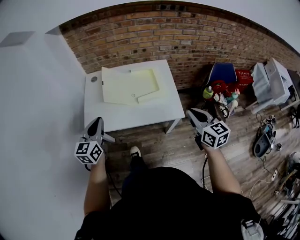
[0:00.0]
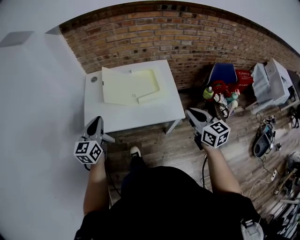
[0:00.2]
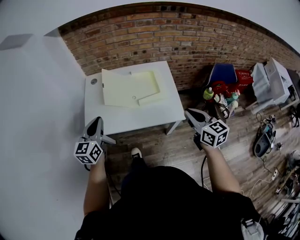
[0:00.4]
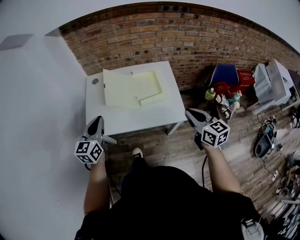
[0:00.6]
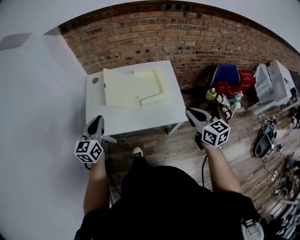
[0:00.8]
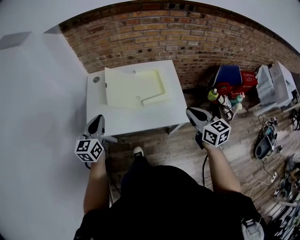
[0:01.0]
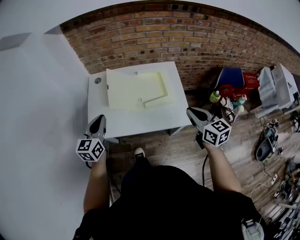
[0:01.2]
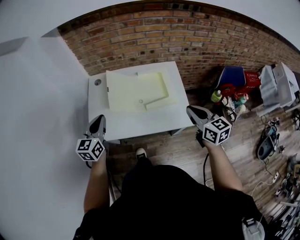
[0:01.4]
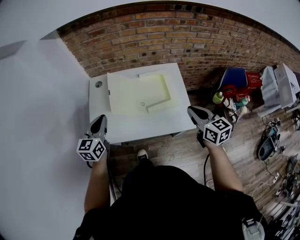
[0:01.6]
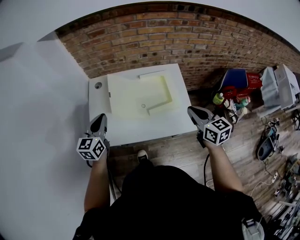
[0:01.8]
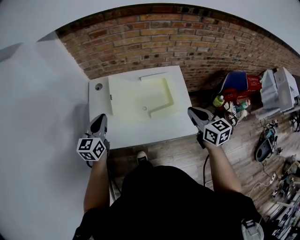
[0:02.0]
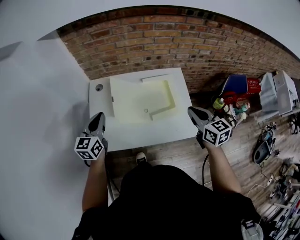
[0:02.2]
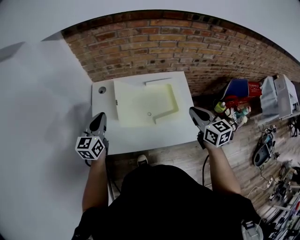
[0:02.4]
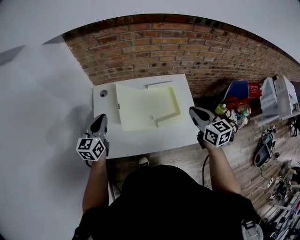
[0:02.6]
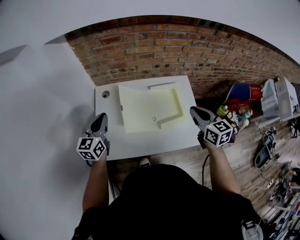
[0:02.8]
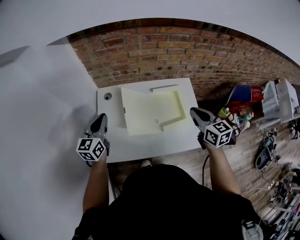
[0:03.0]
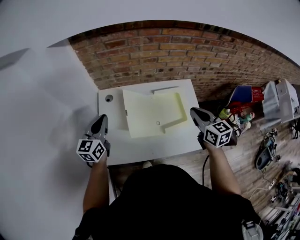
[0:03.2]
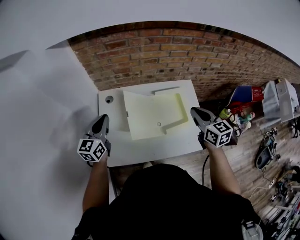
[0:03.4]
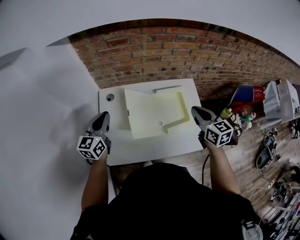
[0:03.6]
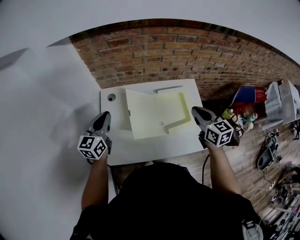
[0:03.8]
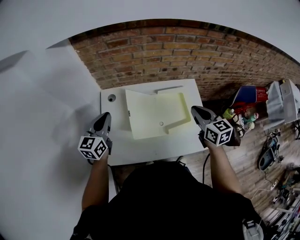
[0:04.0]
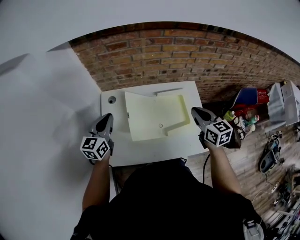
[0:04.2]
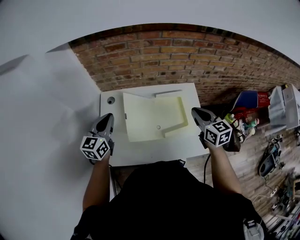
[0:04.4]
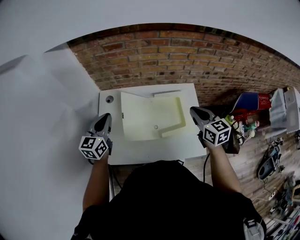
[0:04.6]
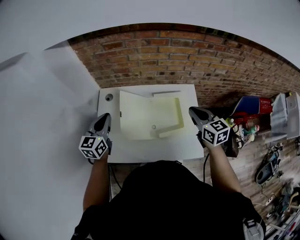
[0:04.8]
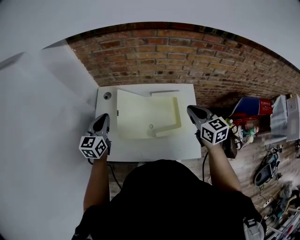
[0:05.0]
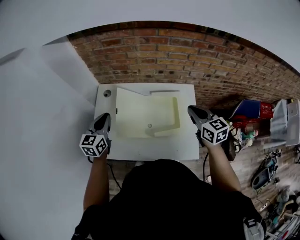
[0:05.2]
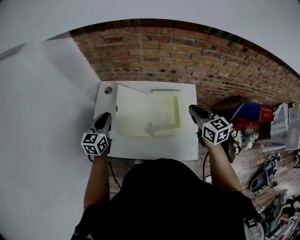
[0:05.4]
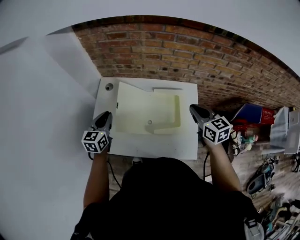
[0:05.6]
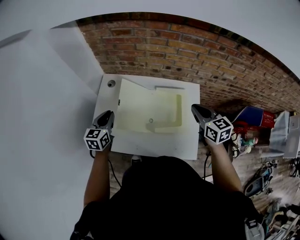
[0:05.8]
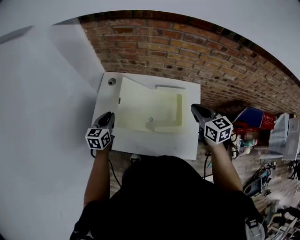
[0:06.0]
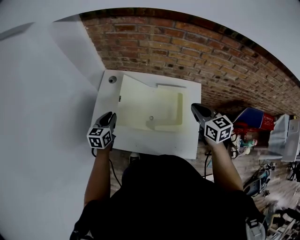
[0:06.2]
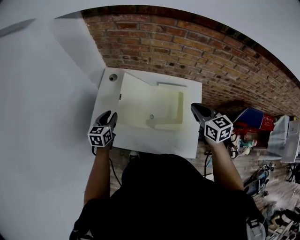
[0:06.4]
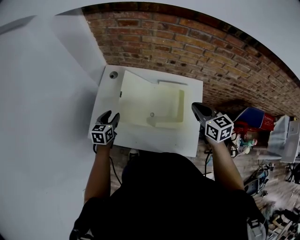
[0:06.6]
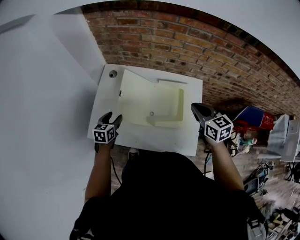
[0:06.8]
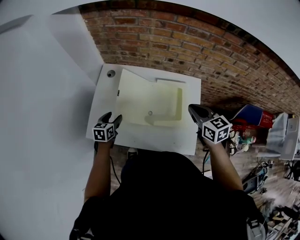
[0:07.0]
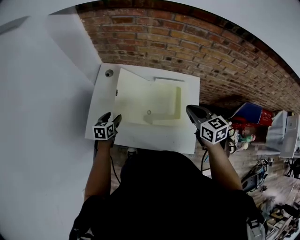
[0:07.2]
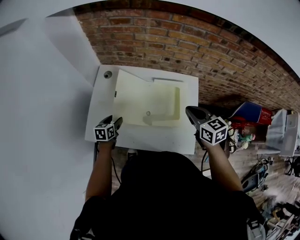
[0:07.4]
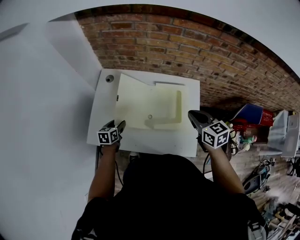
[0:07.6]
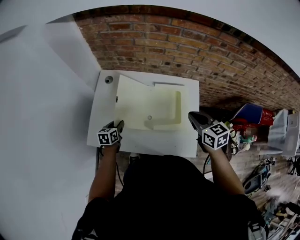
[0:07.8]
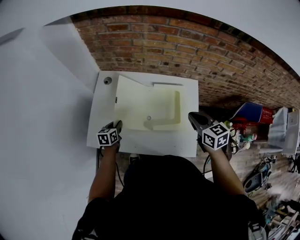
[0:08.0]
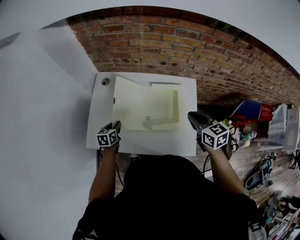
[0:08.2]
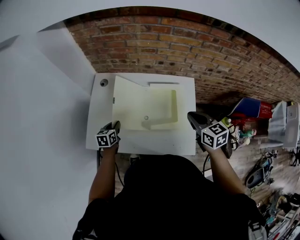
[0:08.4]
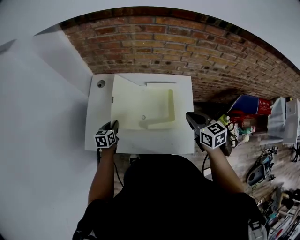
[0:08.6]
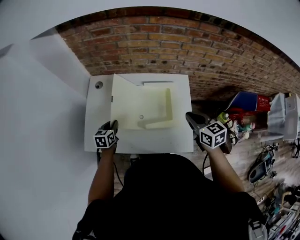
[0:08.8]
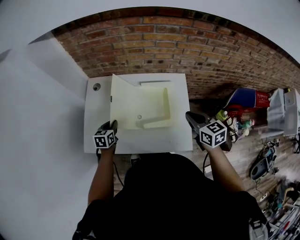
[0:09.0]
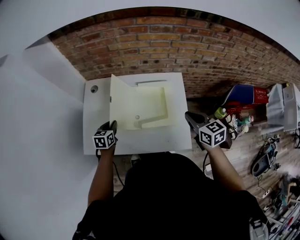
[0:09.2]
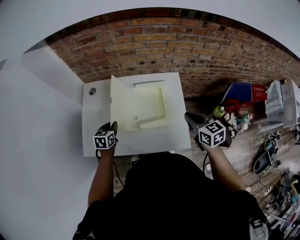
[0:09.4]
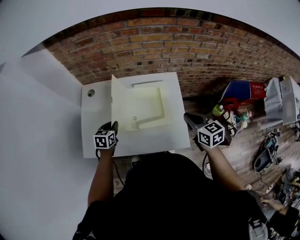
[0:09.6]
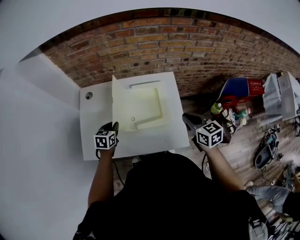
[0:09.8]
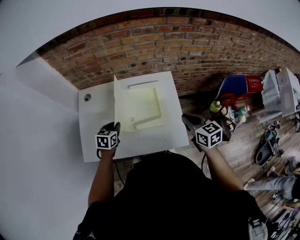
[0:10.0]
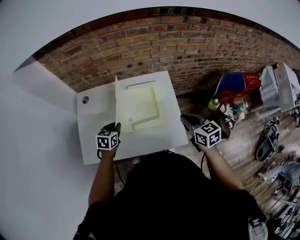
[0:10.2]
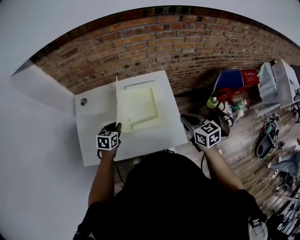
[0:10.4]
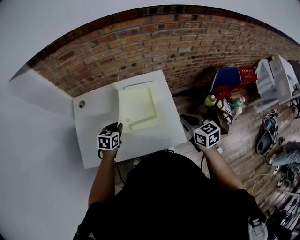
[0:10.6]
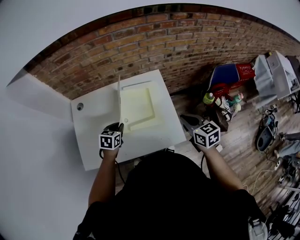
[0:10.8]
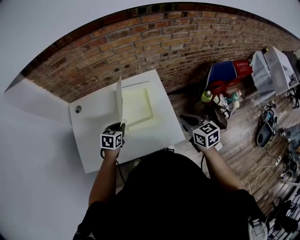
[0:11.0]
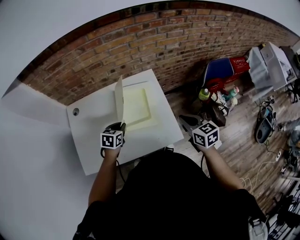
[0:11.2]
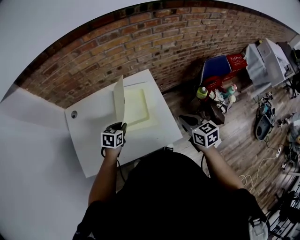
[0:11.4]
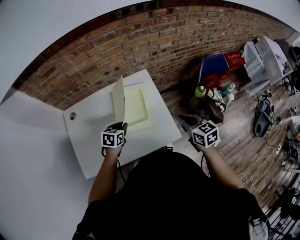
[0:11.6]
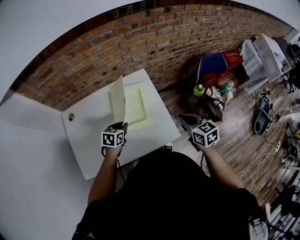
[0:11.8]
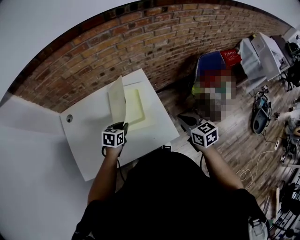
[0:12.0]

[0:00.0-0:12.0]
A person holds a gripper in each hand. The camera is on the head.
0:00.0 to 0:01.6: Both grippers travel together forward, roughly 15 cm.
0:01.6 to 0:03.0: Both grippers move forward and to the left, roughly 15 cm.
0:03.0 to 0:04.4: The right gripper changes place by roughly 5 cm.
0:04.4 to 0:06.0: The right gripper changes place by about 5 cm; the left gripper shifts about 15 cm downward and backward, and swivels approximately 20 degrees.
0:06.0 to 0:07.6: The left gripper shifts some 15 cm downward, and opens up.
0:07.6 to 0:09.0: The right gripper is displaced to the right by roughly 5 cm. The left gripper moves approximately 5 cm, and closes its fingers.
0:09.0 to 0:10.4: The left gripper is displaced to the right by approximately 10 cm, while the right gripper goes roughly 5 cm backward.
0:10.4 to 0:12.0: The right gripper is displaced to the right by roughly 5 cm, while the left gripper moves to the right, approximately 10 cm.

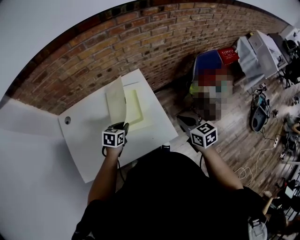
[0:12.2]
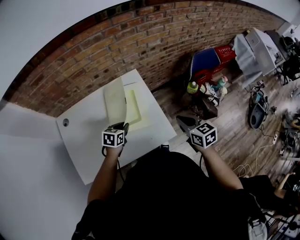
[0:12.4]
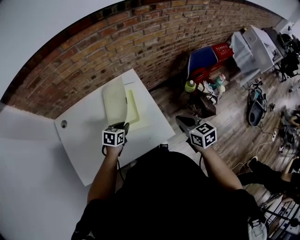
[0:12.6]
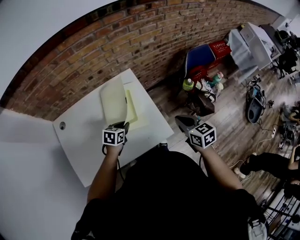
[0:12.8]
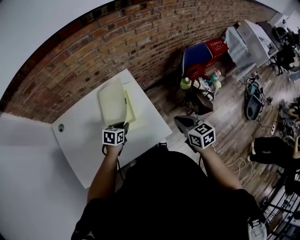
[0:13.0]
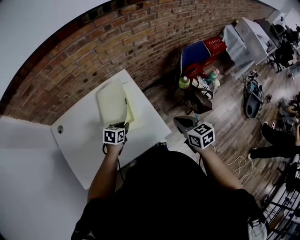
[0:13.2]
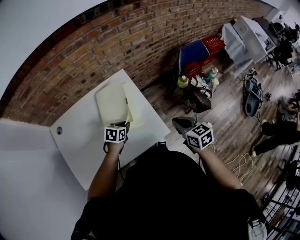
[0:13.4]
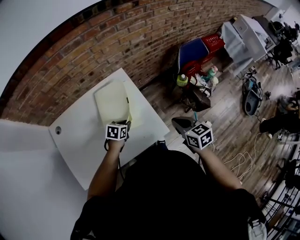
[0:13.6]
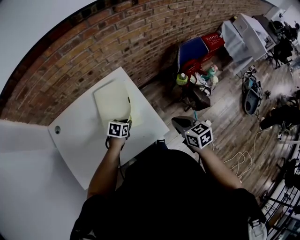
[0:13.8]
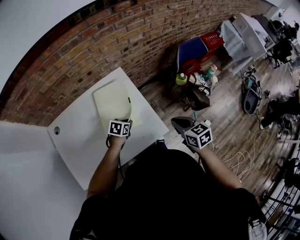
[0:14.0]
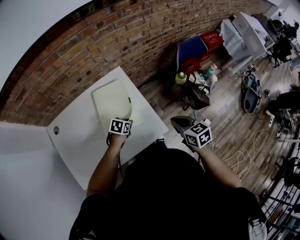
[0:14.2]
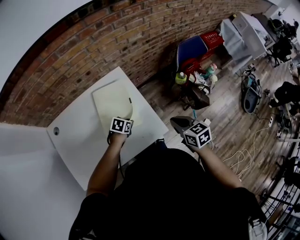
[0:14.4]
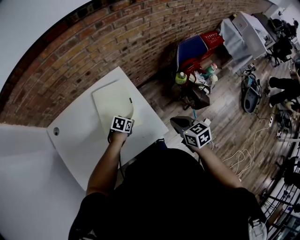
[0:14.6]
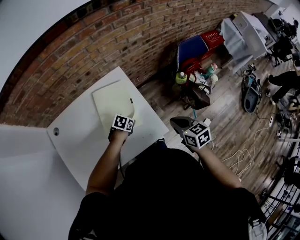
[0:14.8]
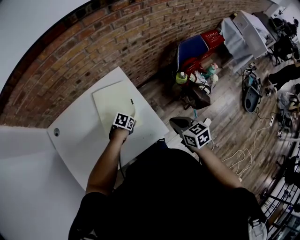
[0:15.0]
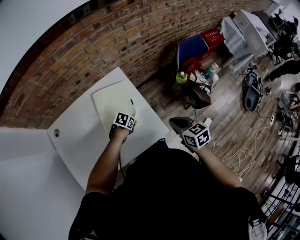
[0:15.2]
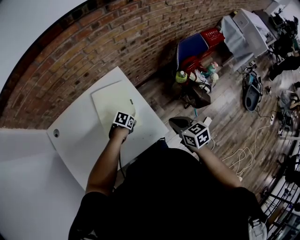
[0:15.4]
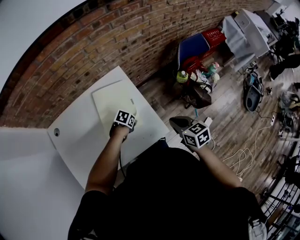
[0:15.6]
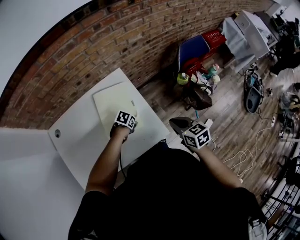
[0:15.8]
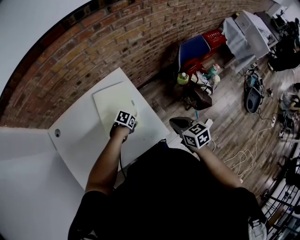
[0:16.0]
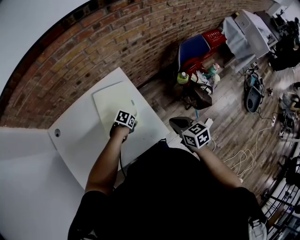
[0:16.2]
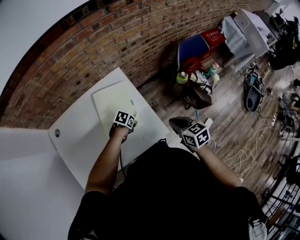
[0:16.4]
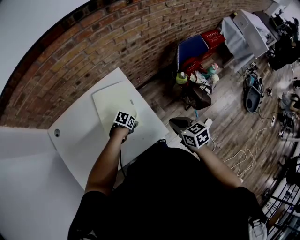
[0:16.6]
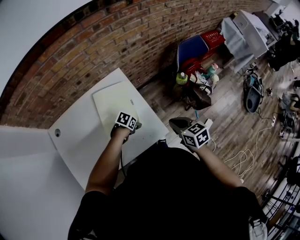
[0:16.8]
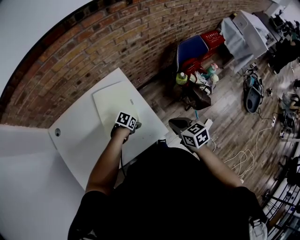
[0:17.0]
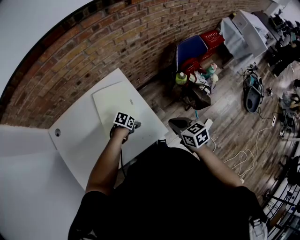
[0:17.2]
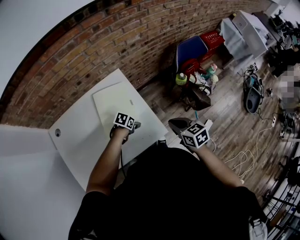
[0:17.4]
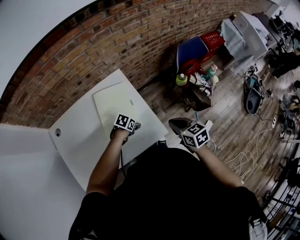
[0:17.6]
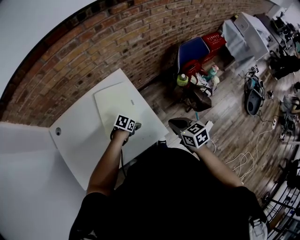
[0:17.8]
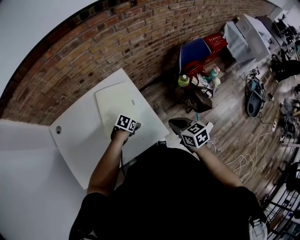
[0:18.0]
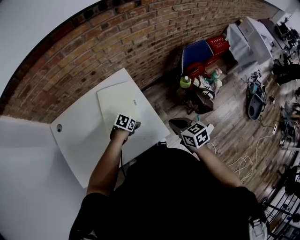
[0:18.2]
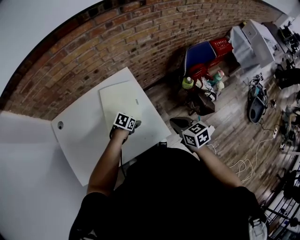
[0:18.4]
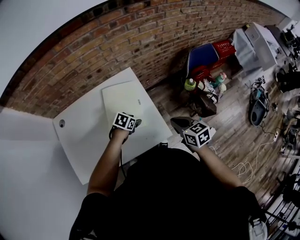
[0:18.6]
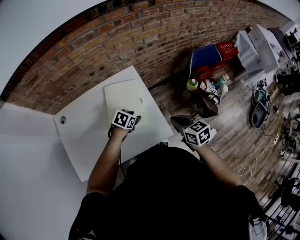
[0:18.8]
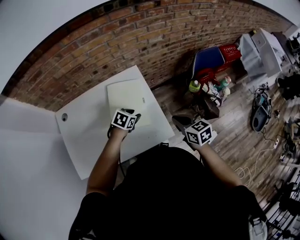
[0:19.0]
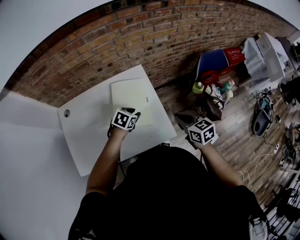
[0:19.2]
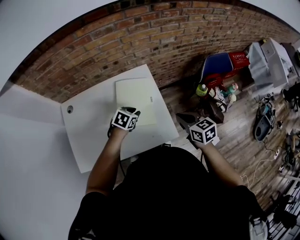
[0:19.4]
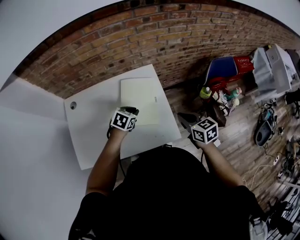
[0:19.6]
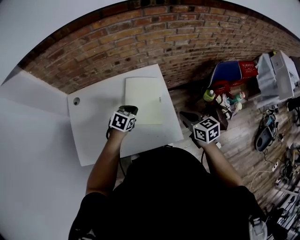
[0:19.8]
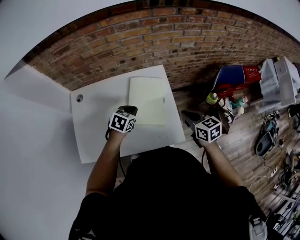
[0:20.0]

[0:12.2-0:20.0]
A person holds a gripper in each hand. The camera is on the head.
0:12.2 to 0:13.8: The right gripper shifts by roughly 5 cm. Meanwhile the left gripper is displaced to the right and downward by some 10 cm.
0:13.8 to 0:15.4: The left gripper shifts by roughly 5 cm.
0:15.4 to 0:16.8: The left gripper opens.
0:16.8 to 0:18.4: The grippers move only a little.
0:18.4 to 0:20.0: The left gripper is displaced upward by about 15 cm, rotates approximately 30 degrees, and closes up. The right gripper shifts by some 10 cm.

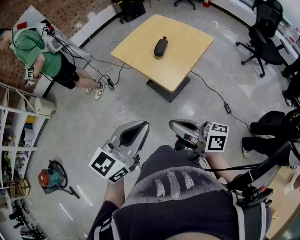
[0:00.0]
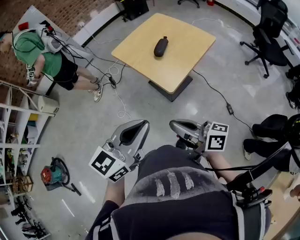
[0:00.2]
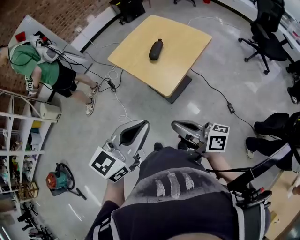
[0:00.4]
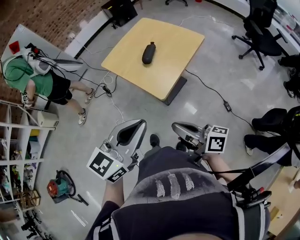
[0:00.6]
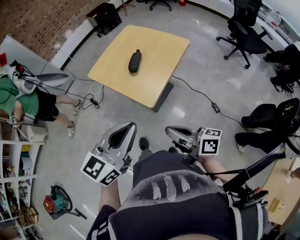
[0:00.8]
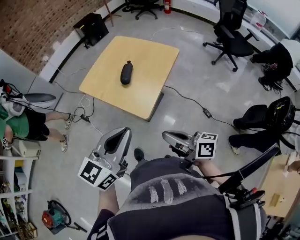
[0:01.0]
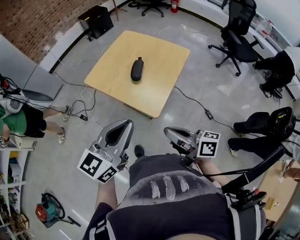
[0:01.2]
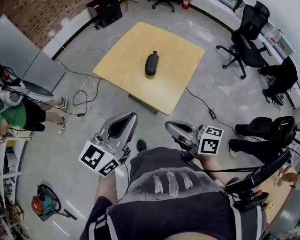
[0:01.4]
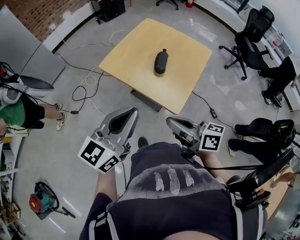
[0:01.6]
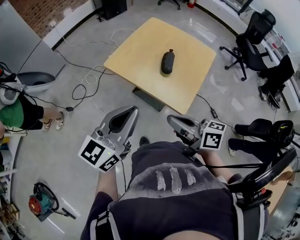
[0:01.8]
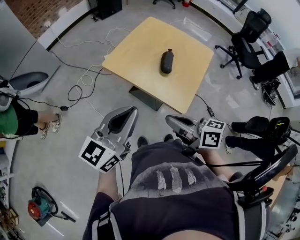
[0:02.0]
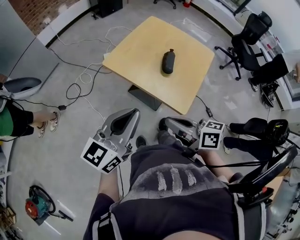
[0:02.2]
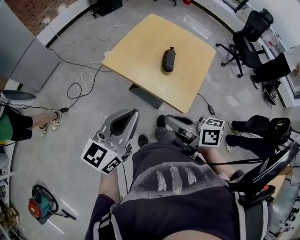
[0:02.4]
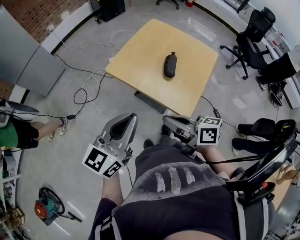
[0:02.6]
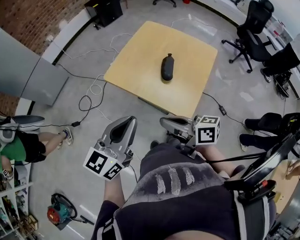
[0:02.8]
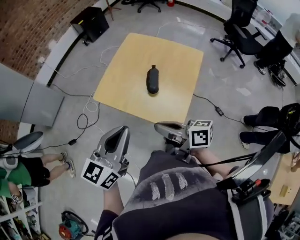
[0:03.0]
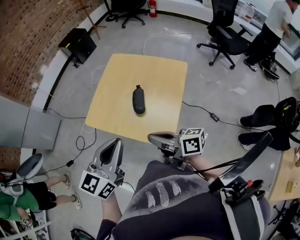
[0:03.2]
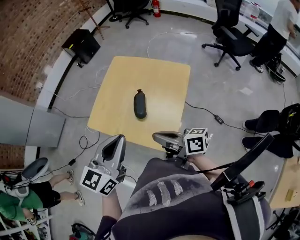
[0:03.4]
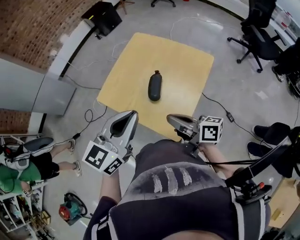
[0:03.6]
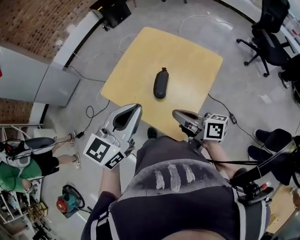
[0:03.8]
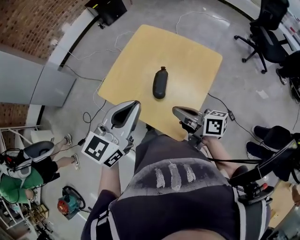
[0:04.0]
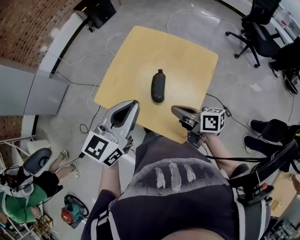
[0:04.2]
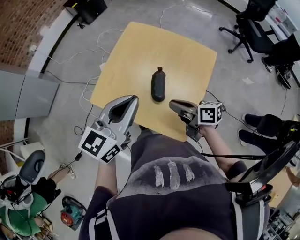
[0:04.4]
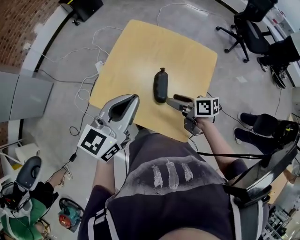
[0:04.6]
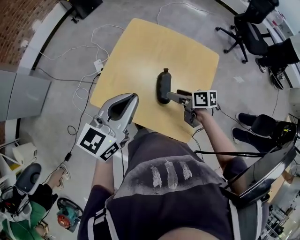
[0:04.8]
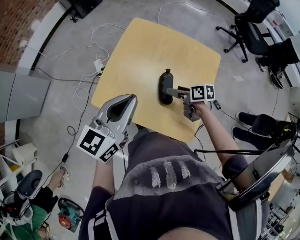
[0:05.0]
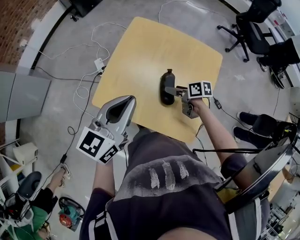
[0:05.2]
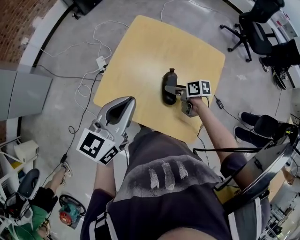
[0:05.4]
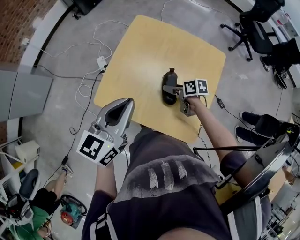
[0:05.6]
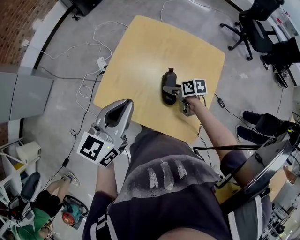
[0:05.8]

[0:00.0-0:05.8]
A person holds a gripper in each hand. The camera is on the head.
0:00.0 to 0:01.4: The two grippers go about 20 cm forward.
0:01.4 to 0:02.8: The grippers both shift to the left and forward by approximately 15 cm.
0:02.8 to 0:04.4: The right gripper goes about 25 cm forward, to the right and downward, while the left gripper travels forward and to the right by roughly 25 cm.
0:04.4 to 0:05.8: The left gripper is displaced to the left by about 5 cm. Meanwhile the right gripper goes some 20 cm downward and forward, rotates about 30 degrees, and opens.
